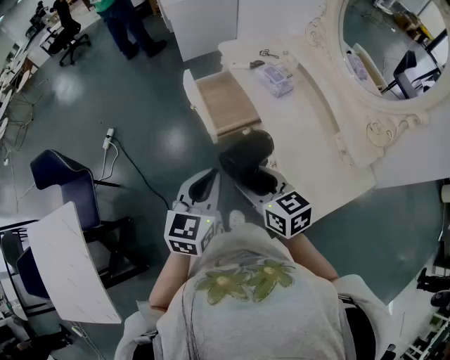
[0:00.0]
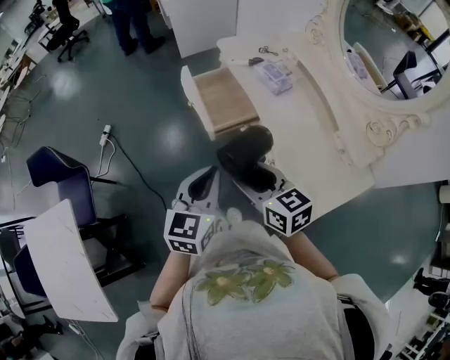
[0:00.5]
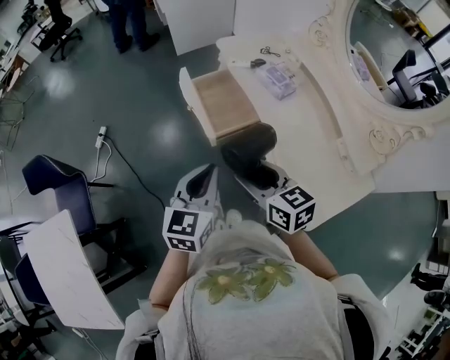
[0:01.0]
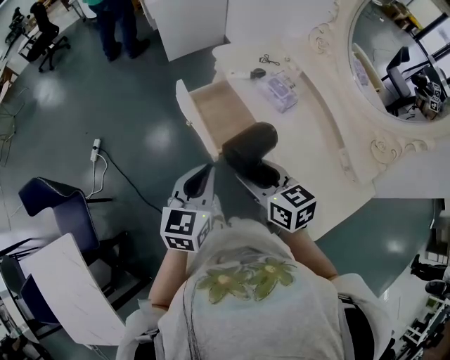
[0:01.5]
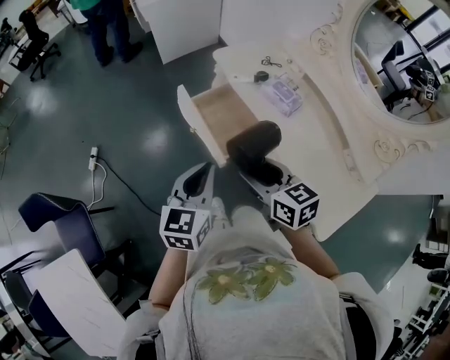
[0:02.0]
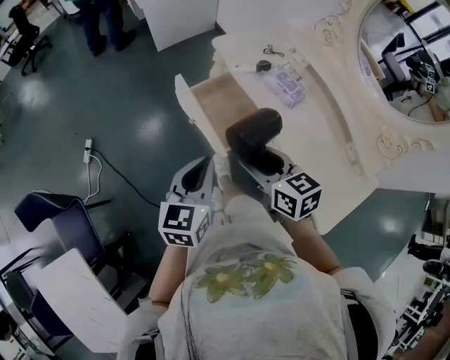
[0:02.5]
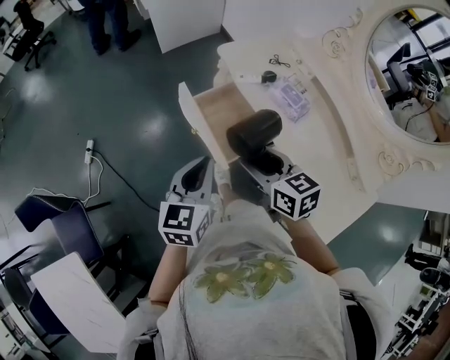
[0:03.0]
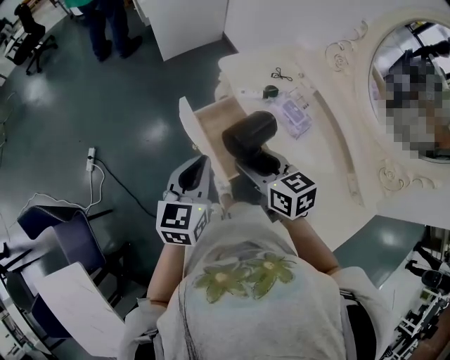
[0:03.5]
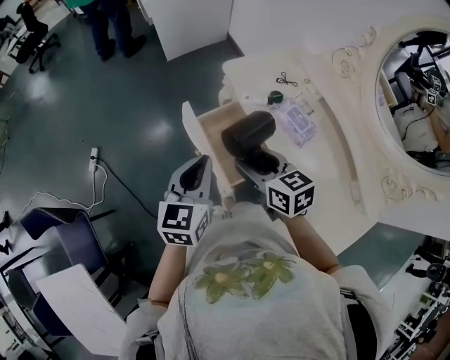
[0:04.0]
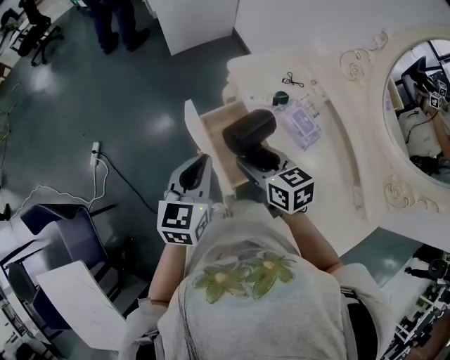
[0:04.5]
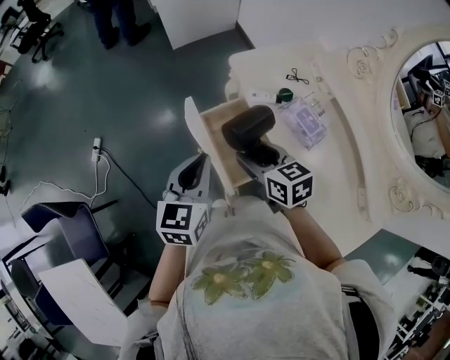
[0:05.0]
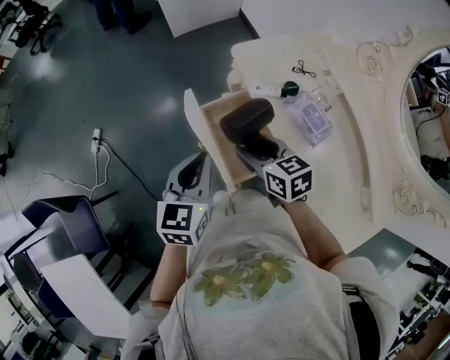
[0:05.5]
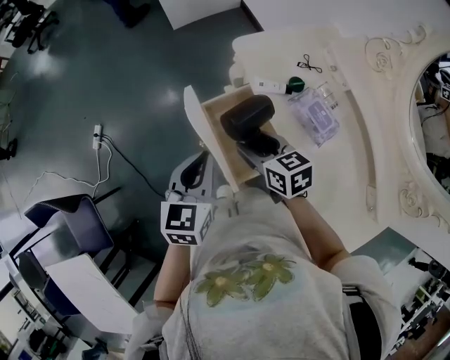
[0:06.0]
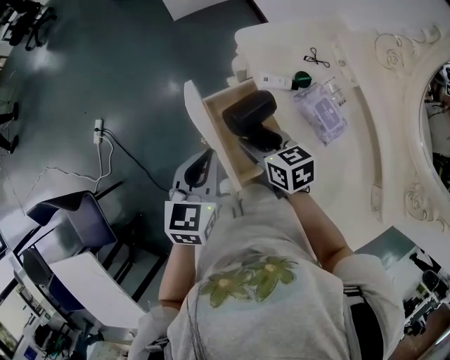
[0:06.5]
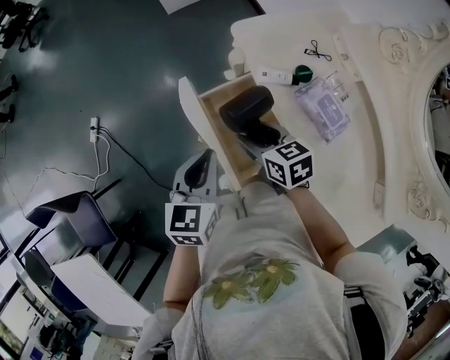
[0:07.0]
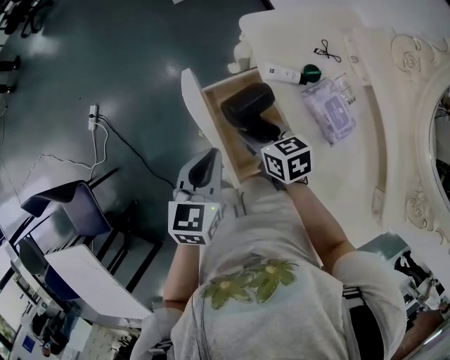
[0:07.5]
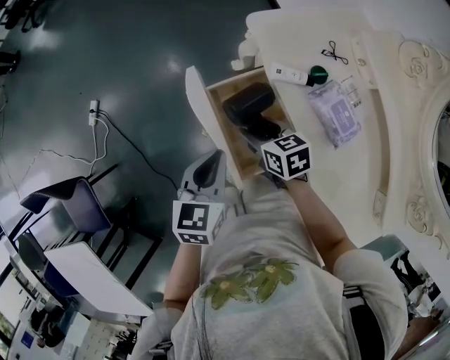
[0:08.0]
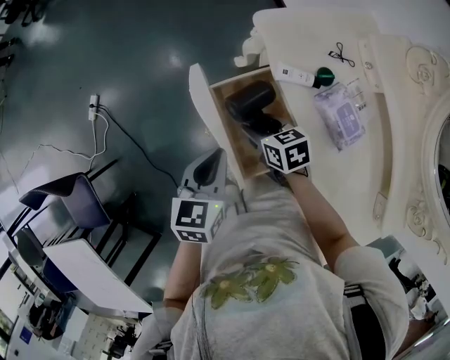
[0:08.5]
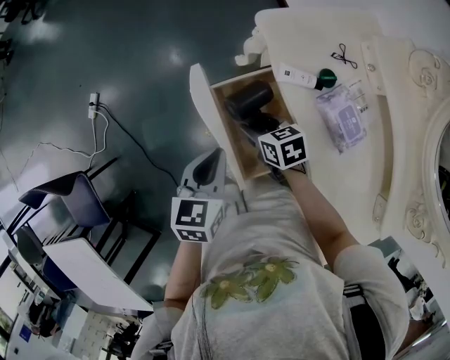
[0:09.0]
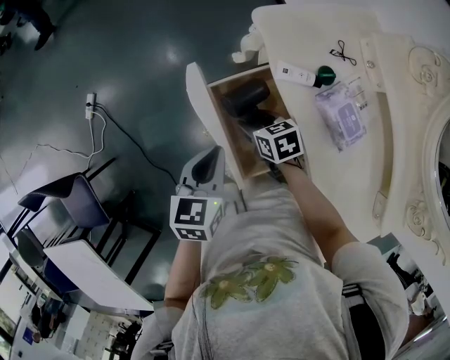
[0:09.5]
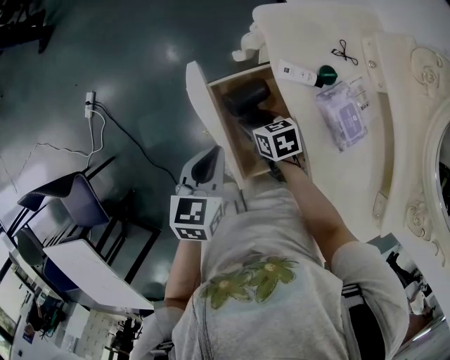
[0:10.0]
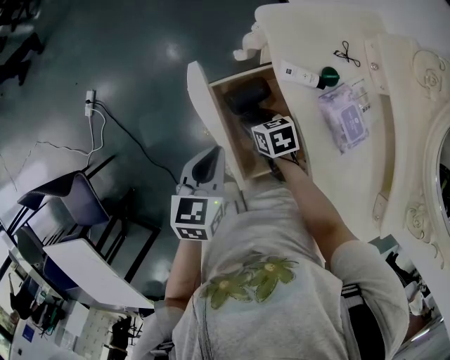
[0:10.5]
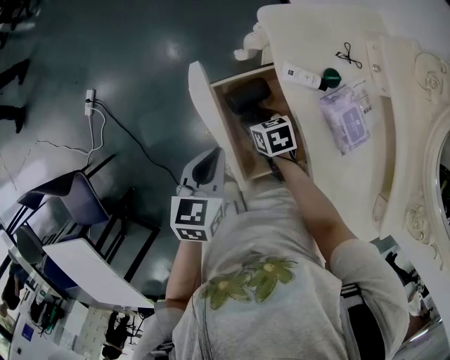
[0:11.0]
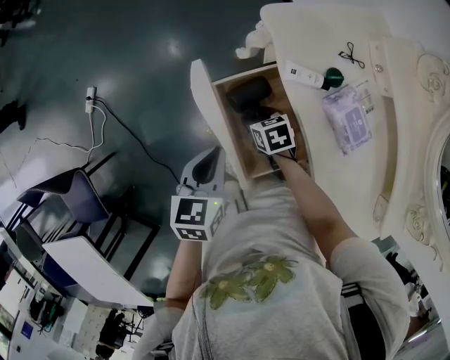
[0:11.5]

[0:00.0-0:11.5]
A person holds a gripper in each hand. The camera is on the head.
0:00.0 to 0:02.0: Both grippers travel together forward, some 15 cm.
0:02.0 to 0:04.0: The two grippers go some 15 cm forward.
0:04.0 to 0:06.0: The right gripper travels downward and forward by about 10 cm, while the left gripper goes about 5 cm downward.
0:06.0 to 0:07.5: Both grippers travel together downward, some 5 cm.
0:07.5 to 0:09.5: The right gripper moves downward, approximately 10 cm.
0:09.5 to 0:11.5: The right gripper moves downward, roughly 5 cm.

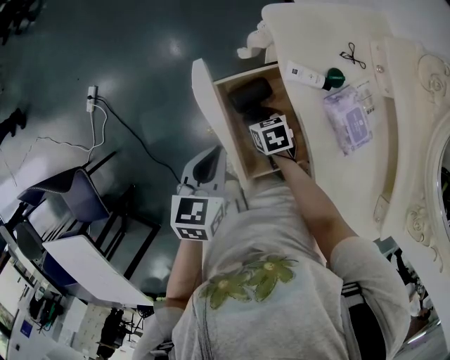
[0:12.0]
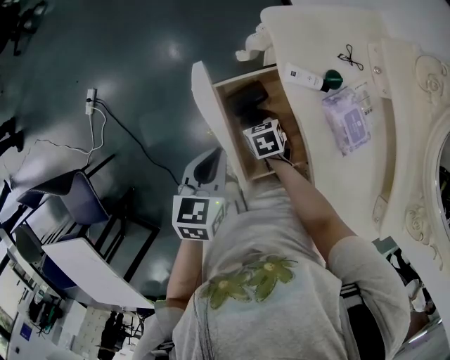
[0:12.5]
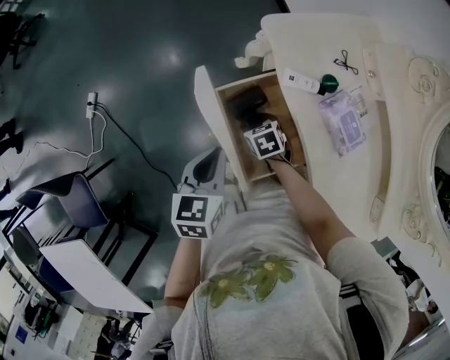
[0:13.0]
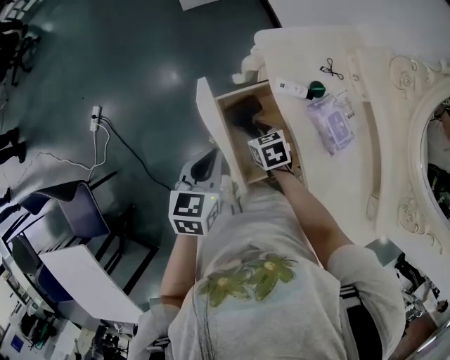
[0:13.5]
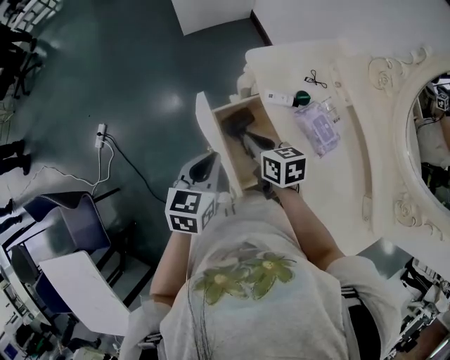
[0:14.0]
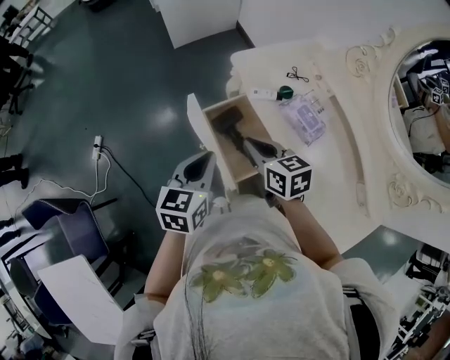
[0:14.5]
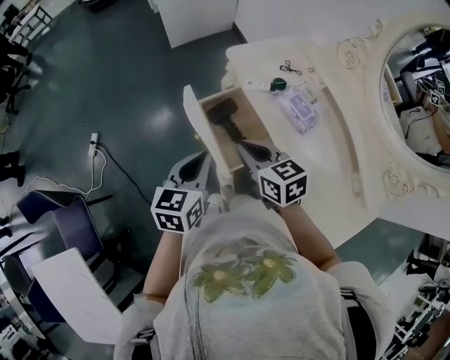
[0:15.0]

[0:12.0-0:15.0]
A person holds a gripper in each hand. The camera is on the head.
0:12.0 to 0:13.5: The right gripper travels upward by approximately 10 cm.
0:13.5 to 0:15.0: The left gripper heads backward and upward, covering approximately 15 cm. The right gripper goes approximately 25 cm upward and backward, rotates some 30 degrees, and closes.

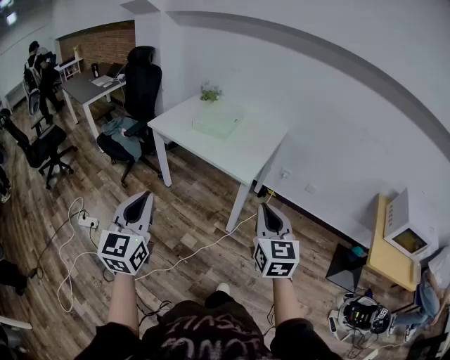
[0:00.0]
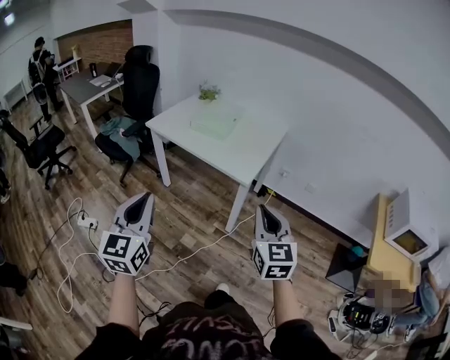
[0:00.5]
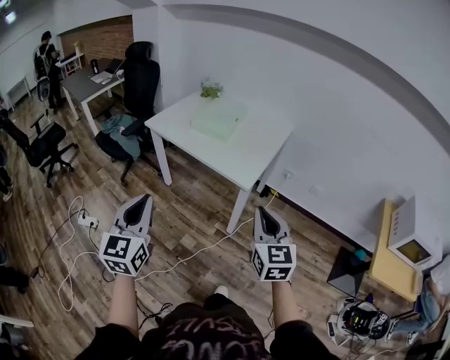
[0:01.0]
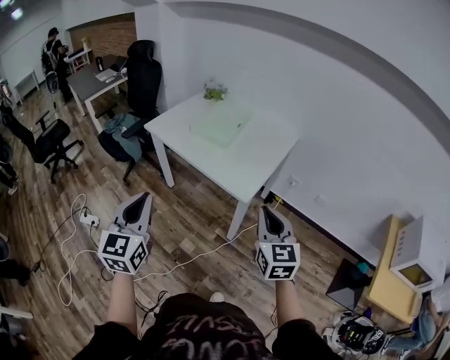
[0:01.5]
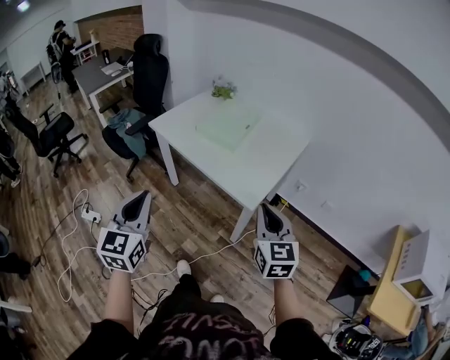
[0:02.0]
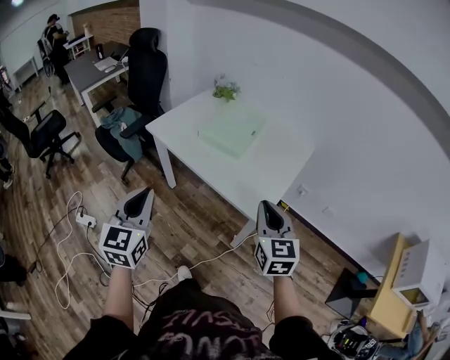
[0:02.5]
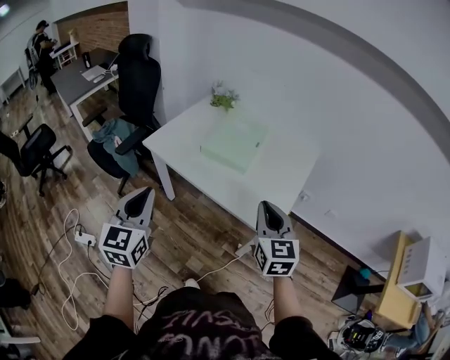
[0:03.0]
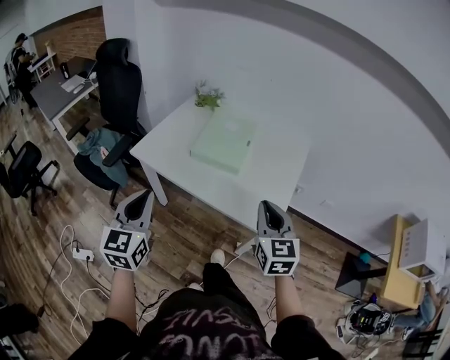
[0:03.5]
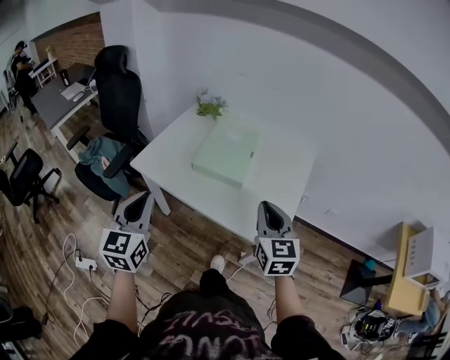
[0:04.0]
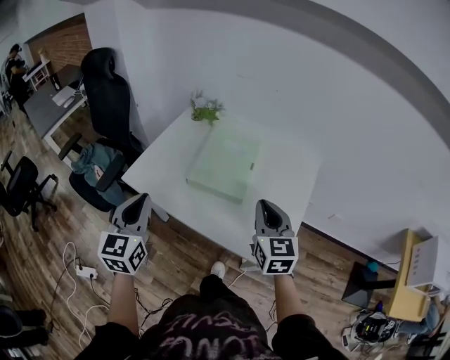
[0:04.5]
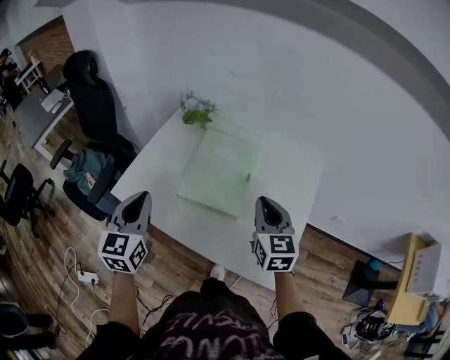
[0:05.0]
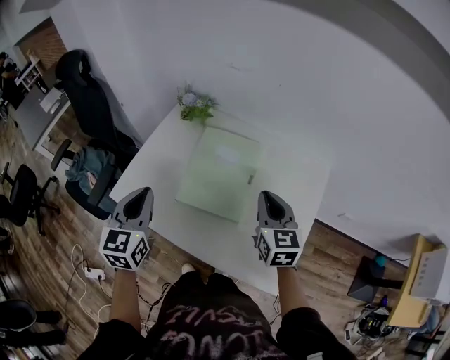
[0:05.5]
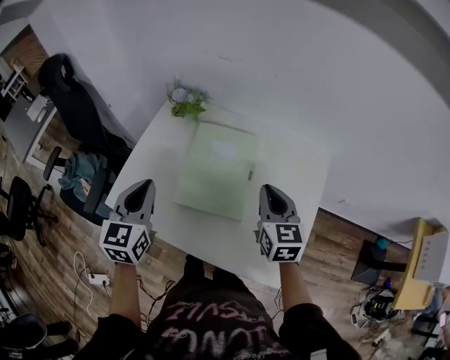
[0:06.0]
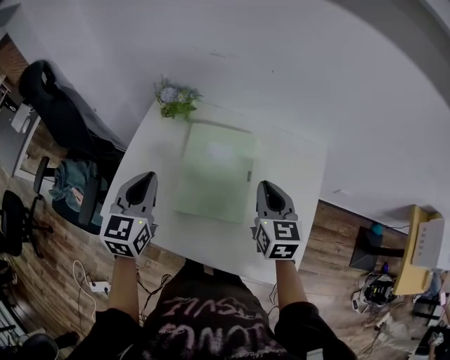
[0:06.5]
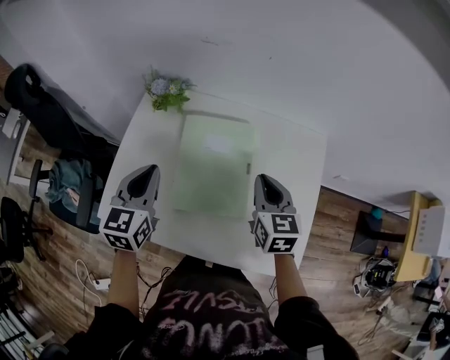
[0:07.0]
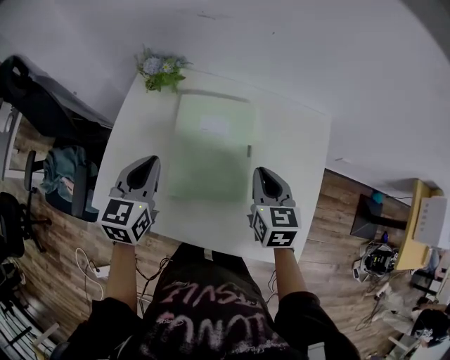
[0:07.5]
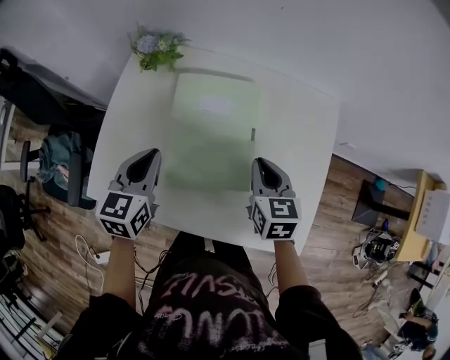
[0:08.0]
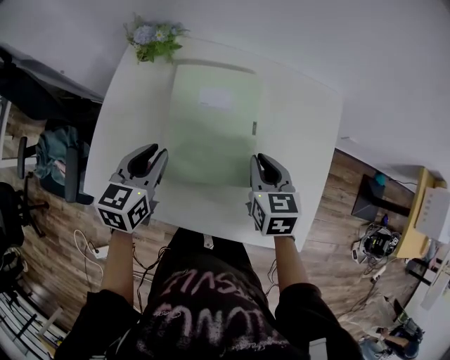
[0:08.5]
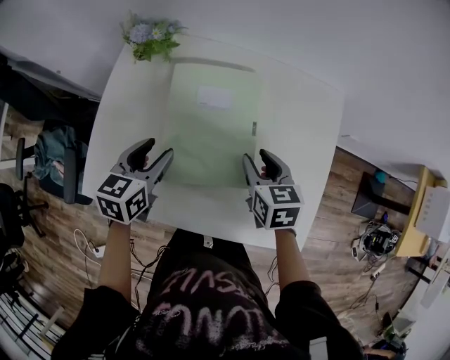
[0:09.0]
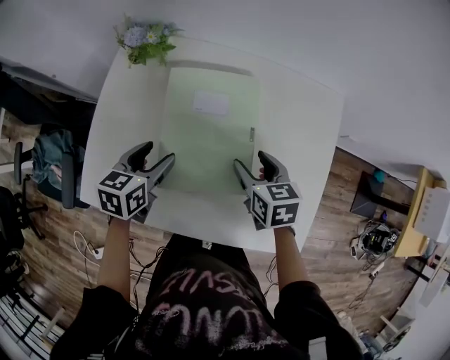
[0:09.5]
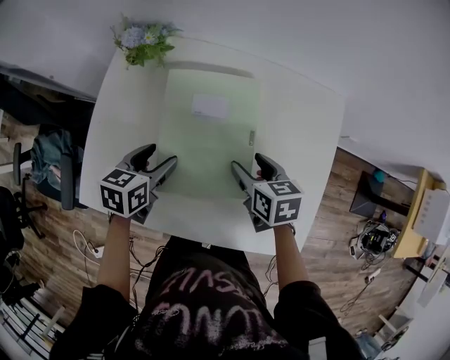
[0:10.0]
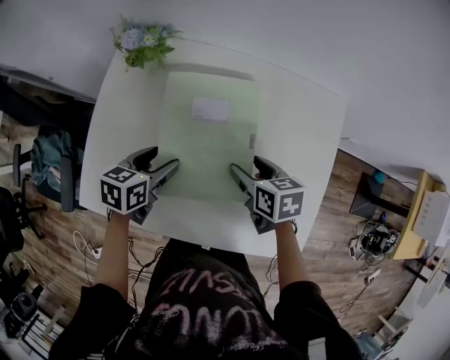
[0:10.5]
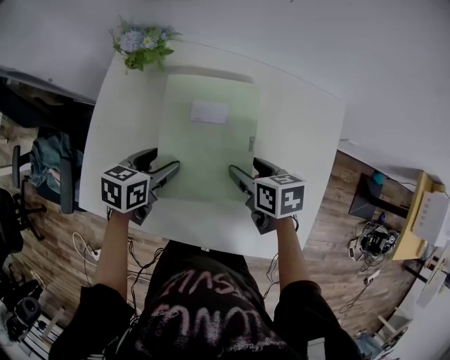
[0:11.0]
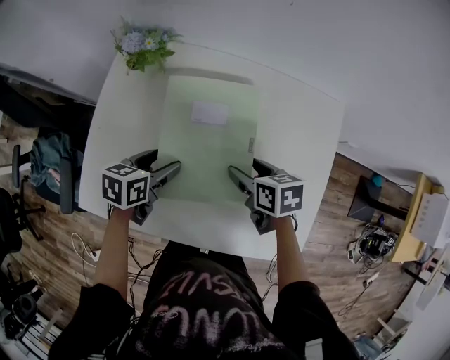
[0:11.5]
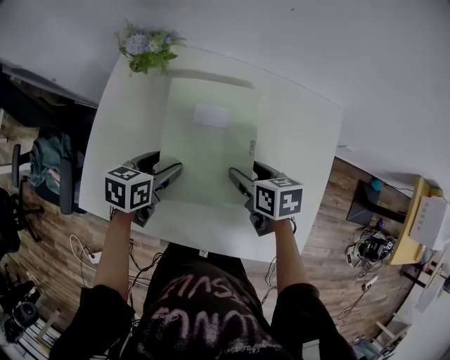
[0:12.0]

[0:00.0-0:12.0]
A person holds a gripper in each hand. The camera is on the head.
0:00.0 to 0:02.0: The grippers both shift forward by roughly 20 cm.
0:02.0 to 0:04.0: Both grippers move forward and to the left, approximately 30 cm.
0:04.0 to 0:06.0: The grippers both shift forward by some 30 cm.
0:06.0 to 0:08.0: The right gripper goes about 10 cm downward; the left gripper is displaced downward and forward by approximately 15 cm.
0:08.0 to 0:10.0: The left gripper goes approximately 10 cm downward, rotates approximately 20 degrees, and opens up. The right gripper is displaced downward by approximately 5 cm, turns by about 20 degrees, and opens its fingers.
0:10.0 to 0:12.0: The grippers move only a little.
